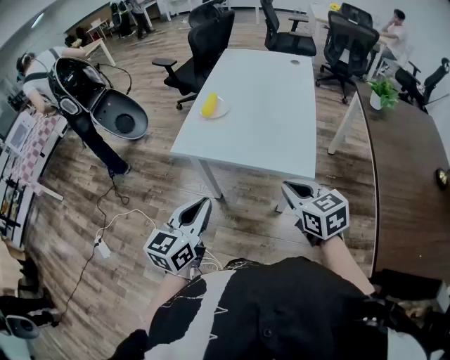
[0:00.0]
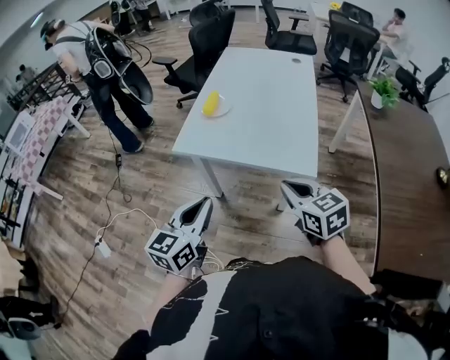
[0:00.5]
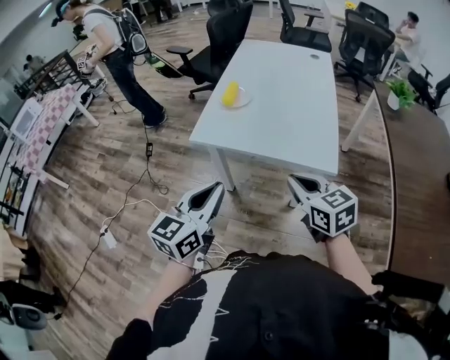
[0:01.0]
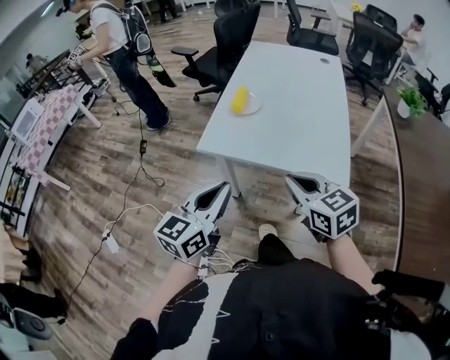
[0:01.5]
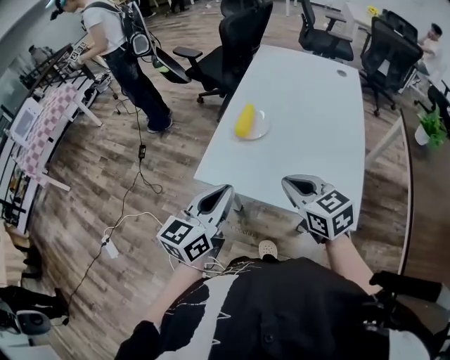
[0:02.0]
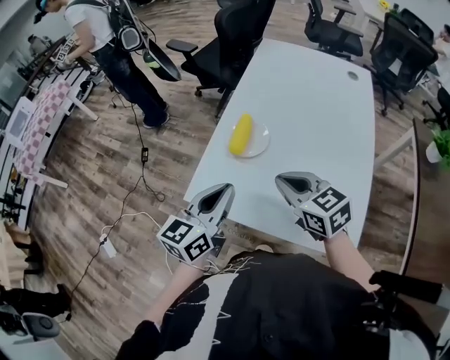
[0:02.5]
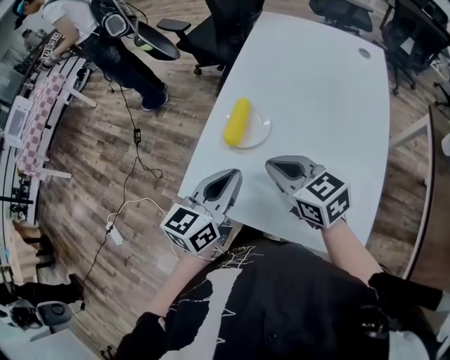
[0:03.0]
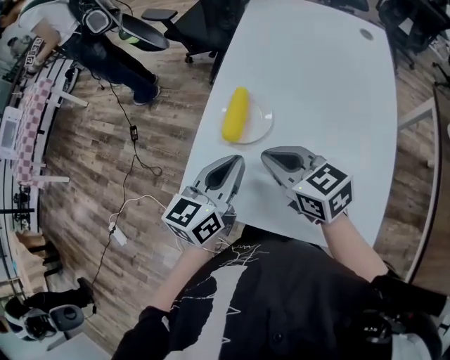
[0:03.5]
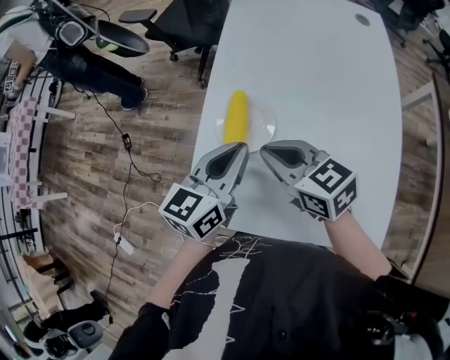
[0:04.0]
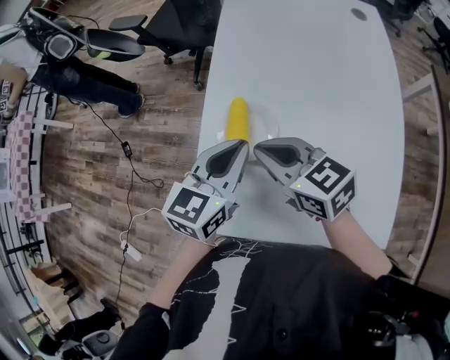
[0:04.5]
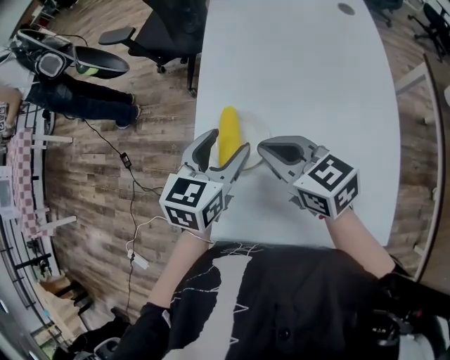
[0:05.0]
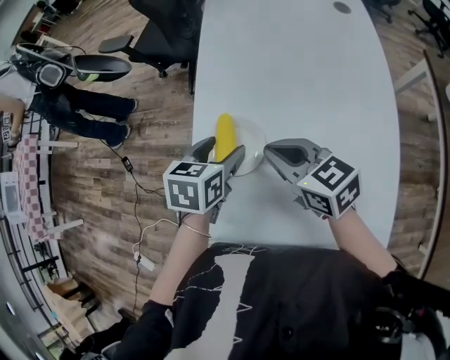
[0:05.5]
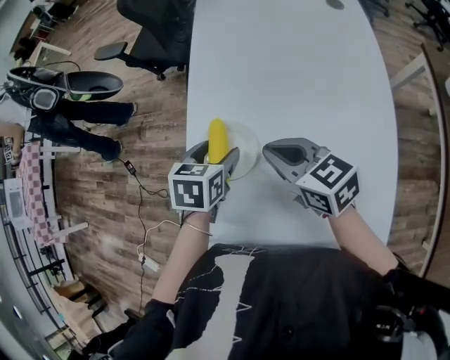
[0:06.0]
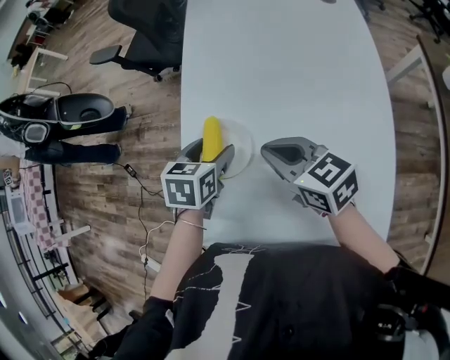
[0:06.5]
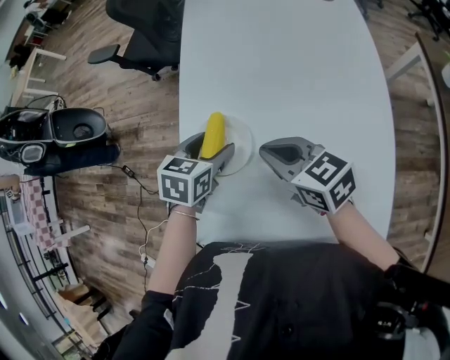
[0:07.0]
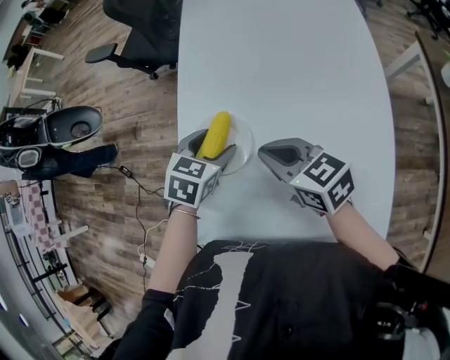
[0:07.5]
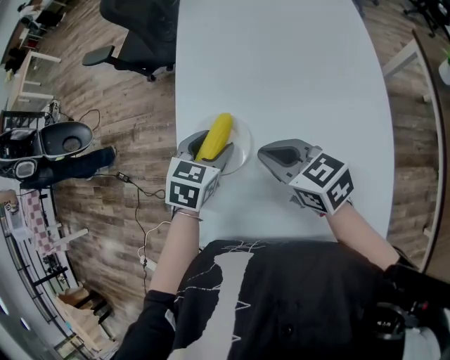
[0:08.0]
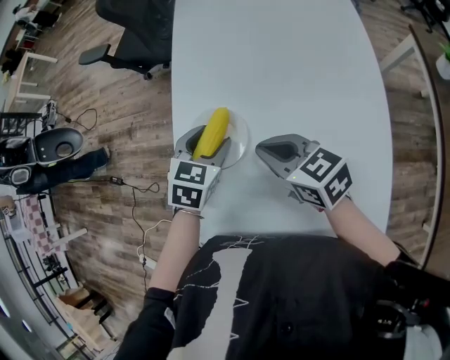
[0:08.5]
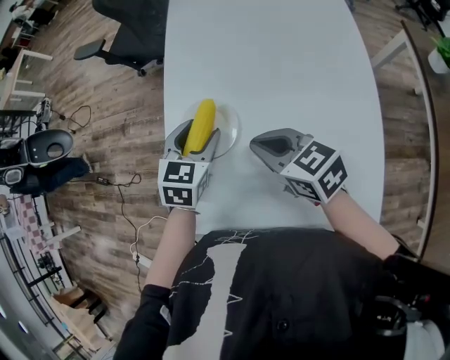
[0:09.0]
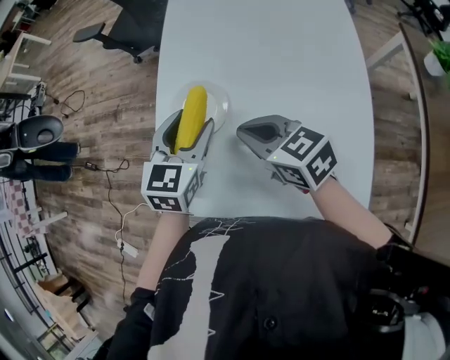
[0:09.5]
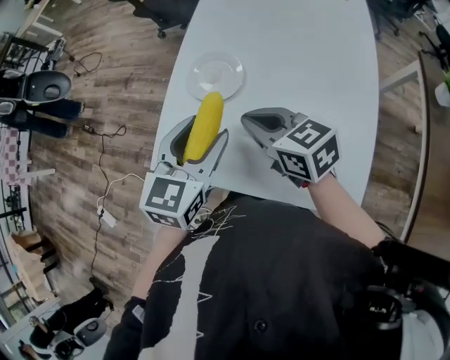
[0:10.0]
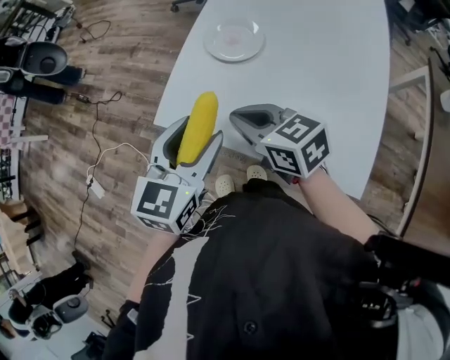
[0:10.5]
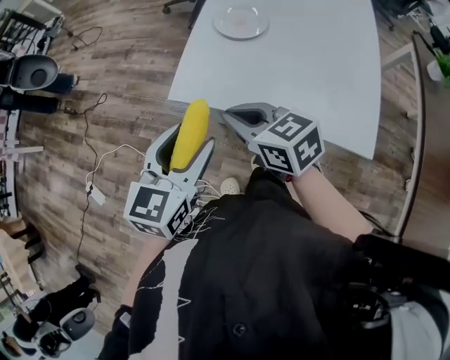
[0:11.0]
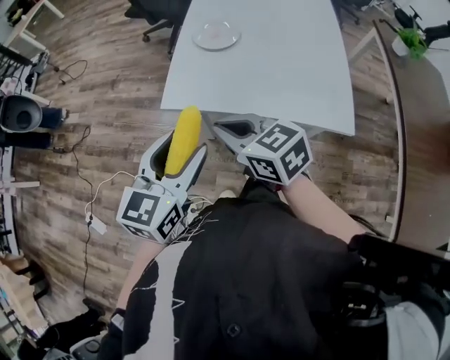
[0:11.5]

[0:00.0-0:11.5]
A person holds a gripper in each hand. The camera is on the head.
0:00.0 to 0:02.0: The right gripper travels forward and to the left by approximately 25 cm; the left gripper travels forward by about 20 cm.
0:02.0 to 0:04.0: The grippers both shift forward by about 25 cm.
0:04.0 to 0:06.0: The left gripper heads downward and forward, covering roughly 10 cm, tips its fingers downward by about 40 degrees, and opens up; the right gripper goes roughly 10 cm to the right.
0:06.0 to 0:07.5: The left gripper changes its angle by some 20 degrees.
0:07.5 to 0:09.5: The left gripper is displaced upward by roughly 10 cm, and swivels roughly 30 degrees.
0:09.5 to 0:11.5: Both grippers travel together backward and to the left, some 35 cm.

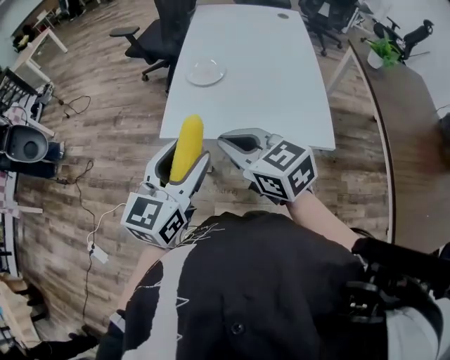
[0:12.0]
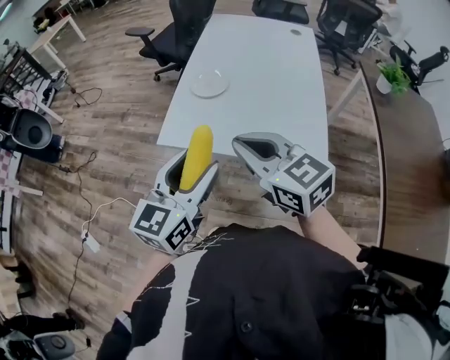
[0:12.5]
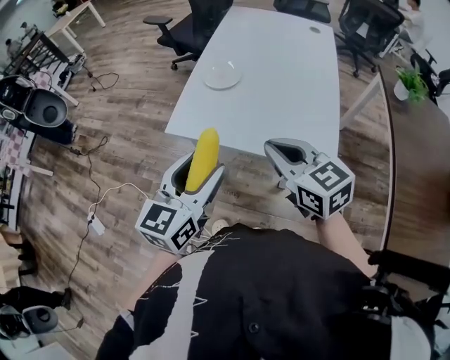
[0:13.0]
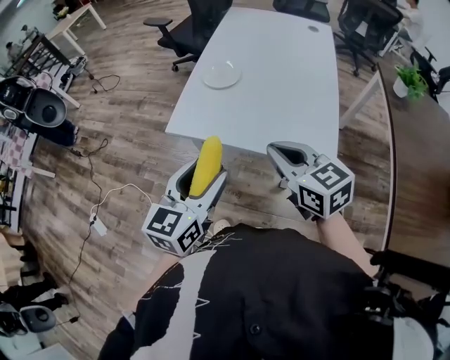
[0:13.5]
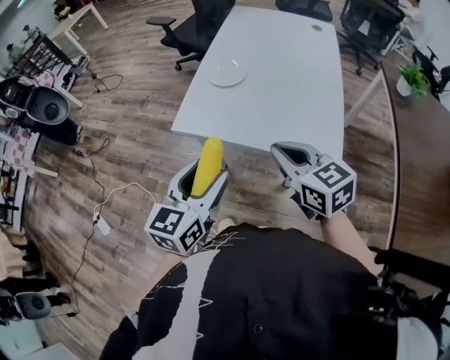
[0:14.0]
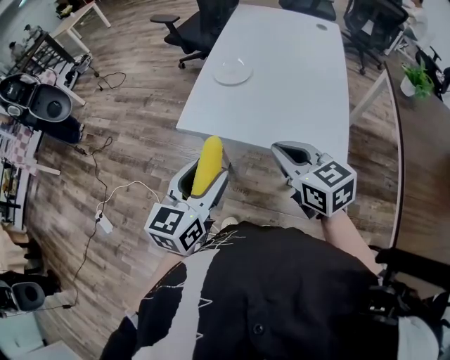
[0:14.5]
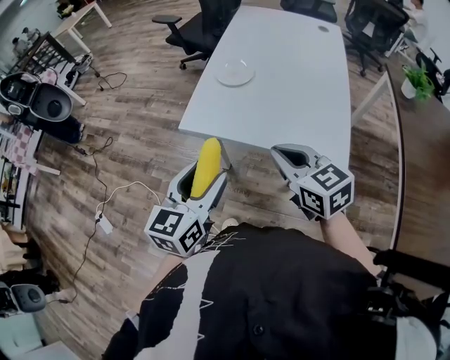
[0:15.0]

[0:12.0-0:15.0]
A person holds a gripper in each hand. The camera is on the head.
0:12.0 to 0:13.5: The right gripper moves to the right, approximately 15 cm. Meanwhile the left gripper shifts roughly 5 cm to the right.
0:13.5 to 0:15.0: There are only small adjustments of the grippers.

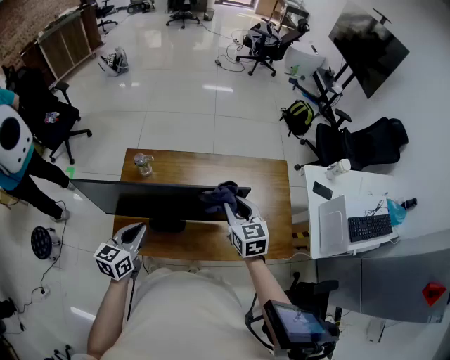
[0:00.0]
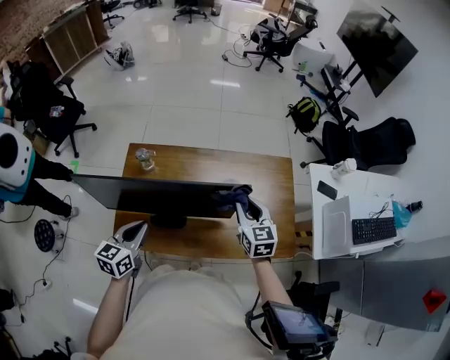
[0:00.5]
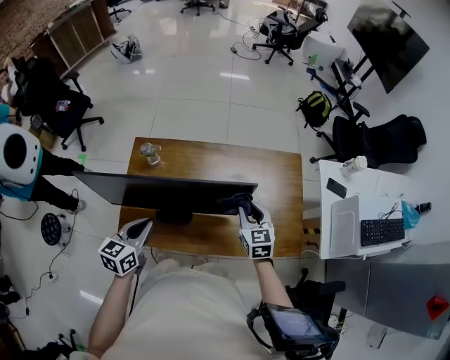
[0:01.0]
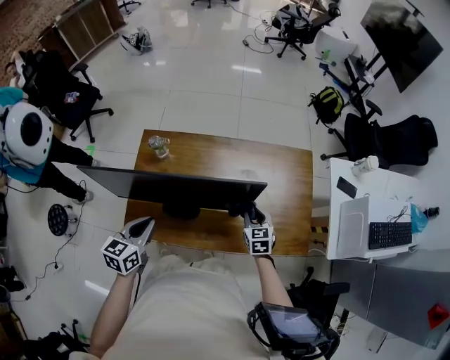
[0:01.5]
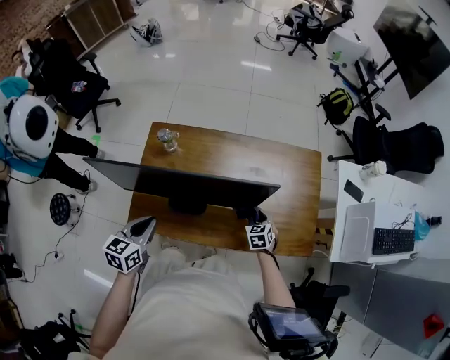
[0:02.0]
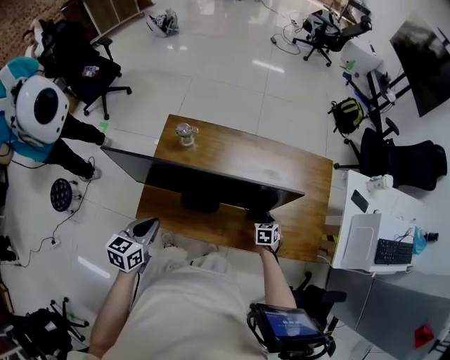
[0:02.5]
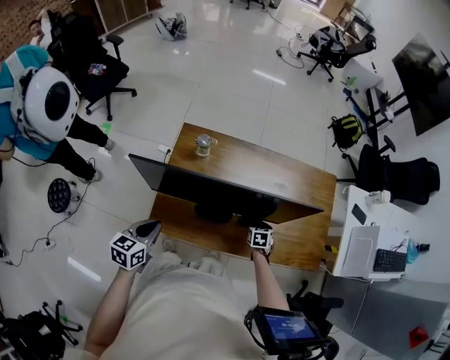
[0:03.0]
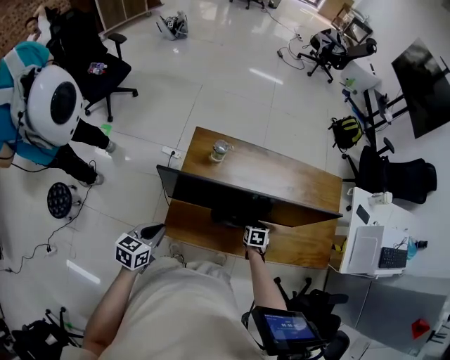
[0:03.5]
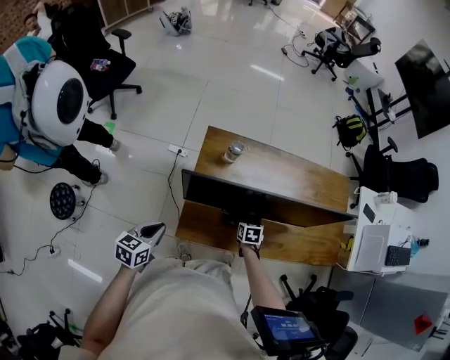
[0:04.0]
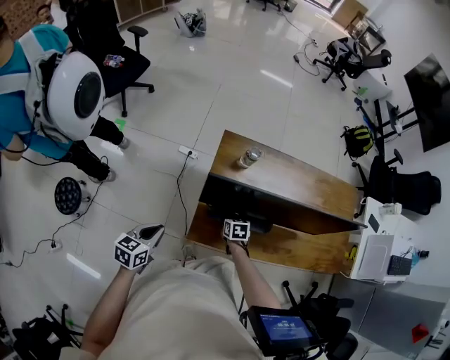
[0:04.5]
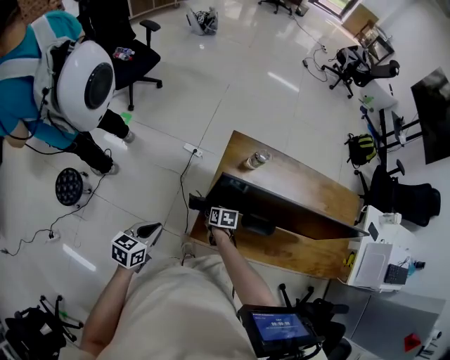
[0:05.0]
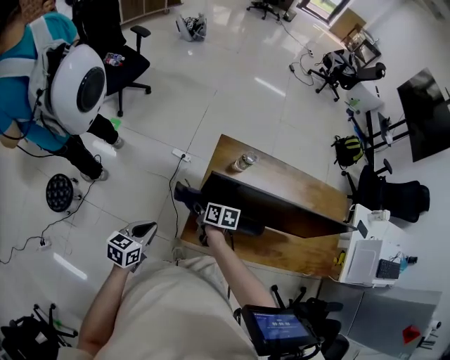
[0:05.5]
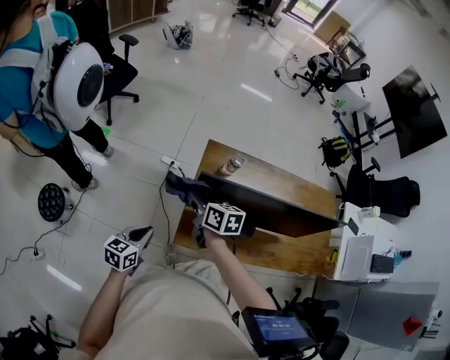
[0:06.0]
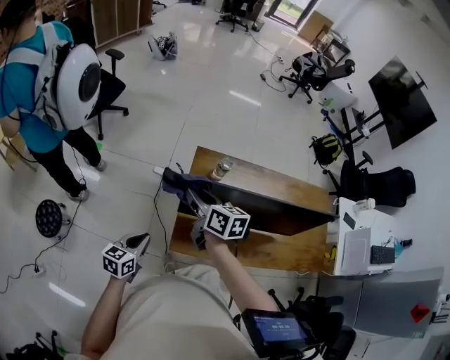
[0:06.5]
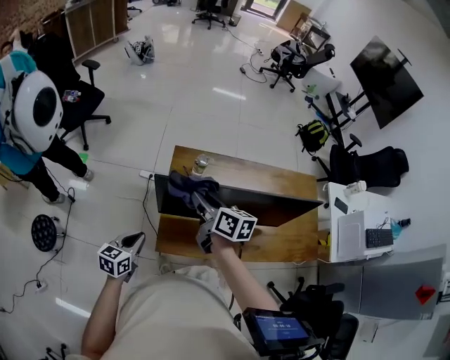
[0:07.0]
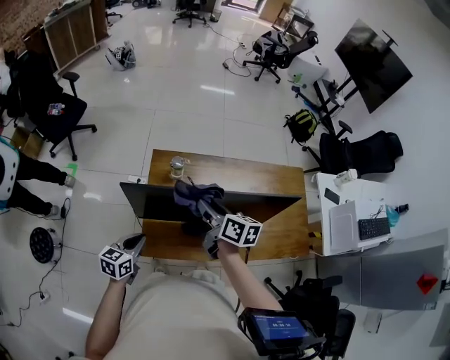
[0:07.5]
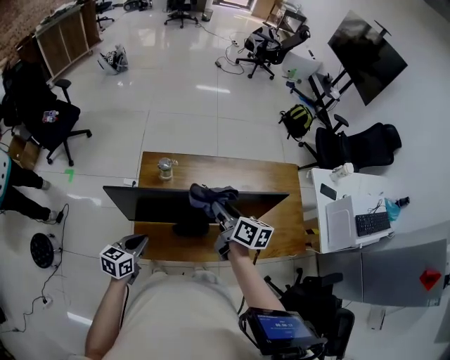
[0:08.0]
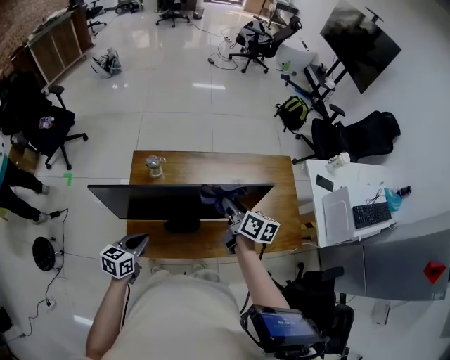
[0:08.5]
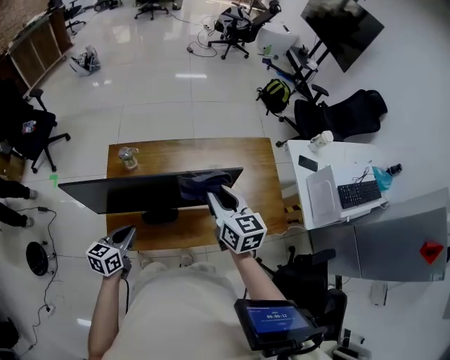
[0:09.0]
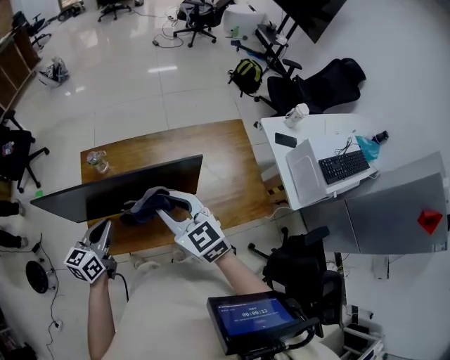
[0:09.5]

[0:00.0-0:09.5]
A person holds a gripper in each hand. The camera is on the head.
0:00.0 to 0:02.0: The right gripper travels downward by some 25 cm, and rotates about 30 degrees.
0:02.0 to 0:04.0: The two grippers go approximately 30 cm to the left. The right gripper rotates some 20 degrees.
0:04.0 to 0:05.5: The right gripper heads to the left and upward, covering approximately 30 cm, and turns by about 30 degrees; the left gripper travels to the left by roughly 10 cm.
0:05.5 to 0:07.5: The right gripper moves to the right and upward, approximately 35 cm, and swivels roughly 30 degrees. The left gripper is displaced to the right by approximately 15 cm.
0:07.5 to 0:09.5: The right gripper goes approximately 20 cm to the right, and twists approximately 50 degrees counterclockwise, seen from behind, while the left gripper moves to the right and upward, some 20 cm.

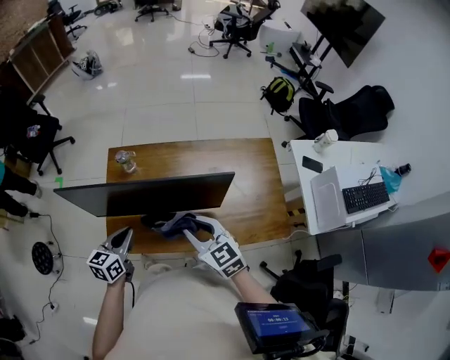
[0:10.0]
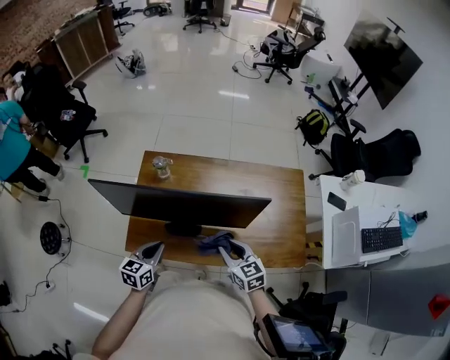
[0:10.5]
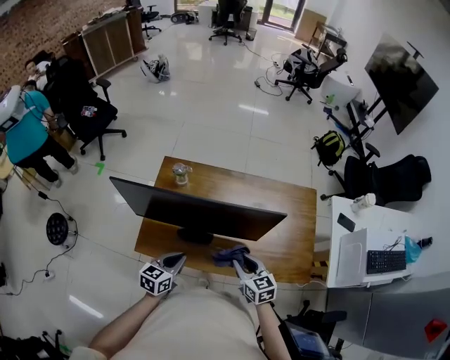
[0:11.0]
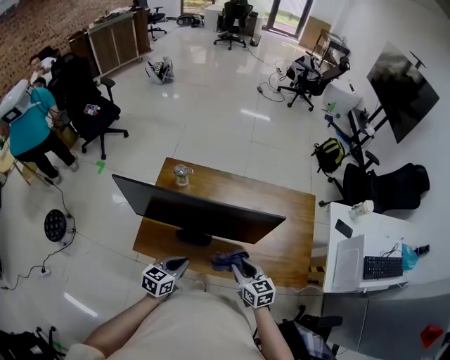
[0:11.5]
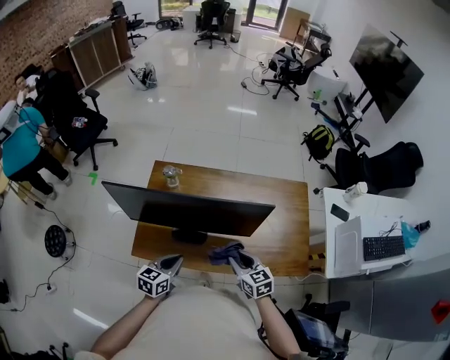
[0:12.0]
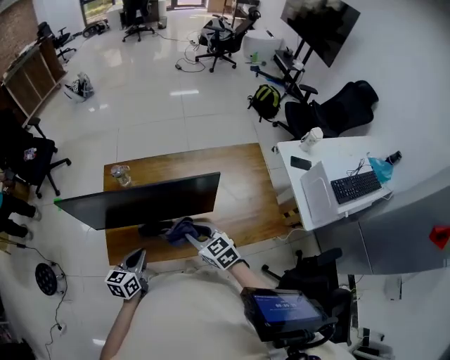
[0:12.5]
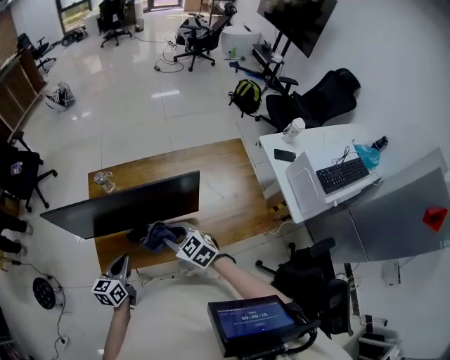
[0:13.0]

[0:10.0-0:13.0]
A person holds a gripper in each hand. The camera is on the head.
0:10.0 to 0:11.5: The right gripper shifts some 10 cm downward; the left gripper goes approximately 10 cm backward and downward.
0:11.5 to 0:13.0: The left gripper ends up some 5 cm from where it was, while the right gripper heads to the left, covering roughly 5 cm.
